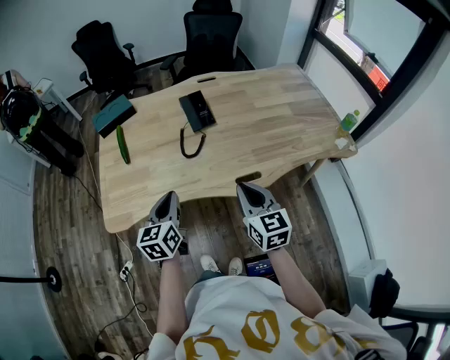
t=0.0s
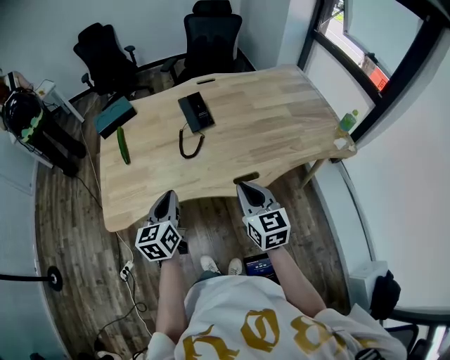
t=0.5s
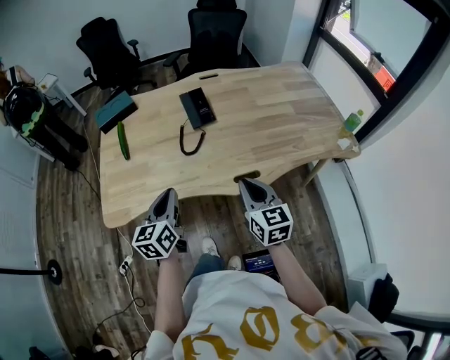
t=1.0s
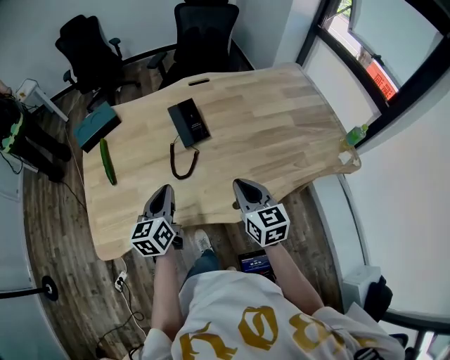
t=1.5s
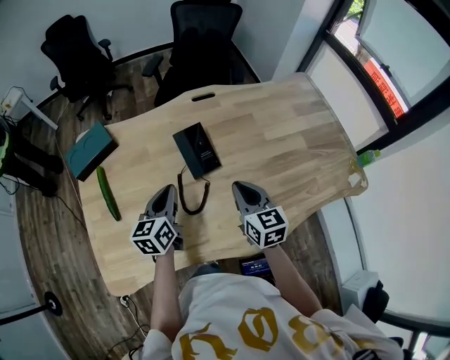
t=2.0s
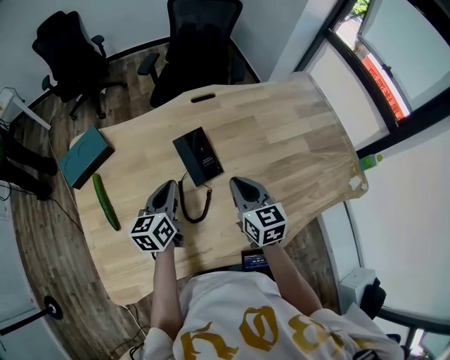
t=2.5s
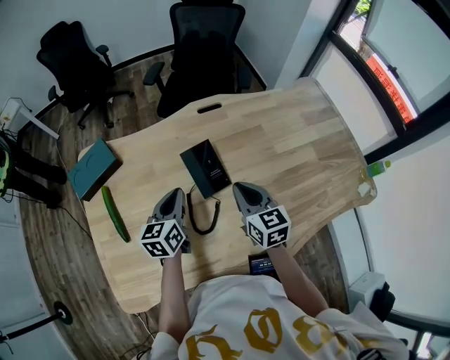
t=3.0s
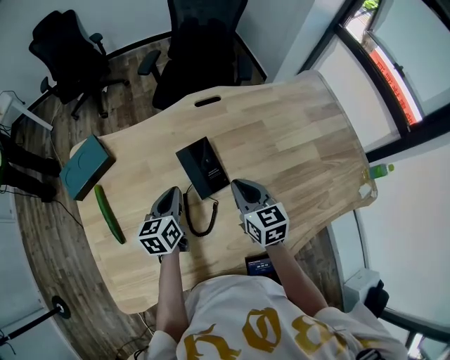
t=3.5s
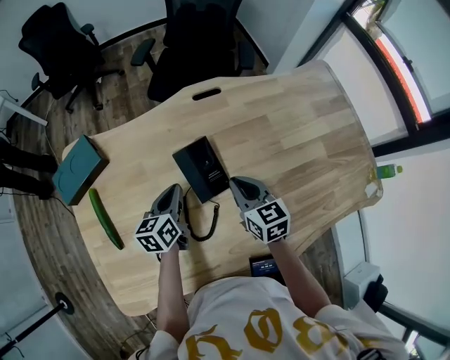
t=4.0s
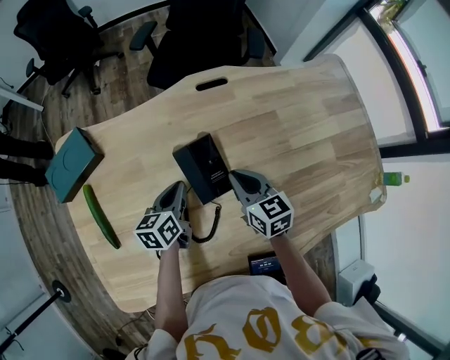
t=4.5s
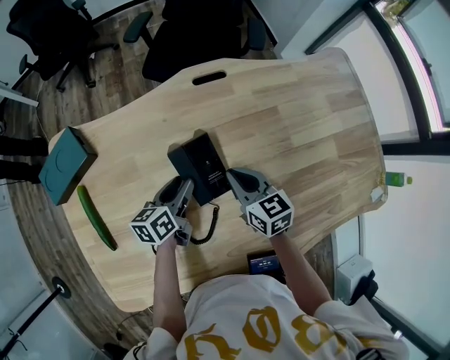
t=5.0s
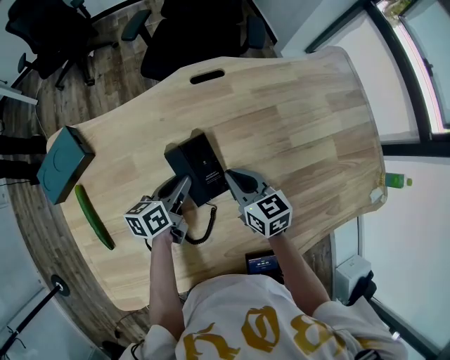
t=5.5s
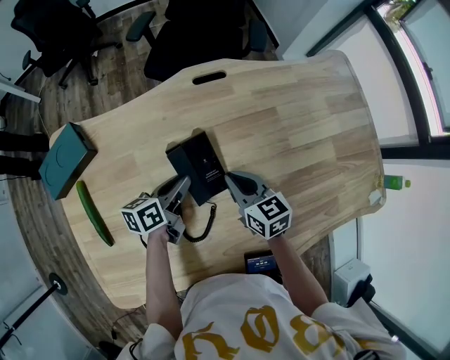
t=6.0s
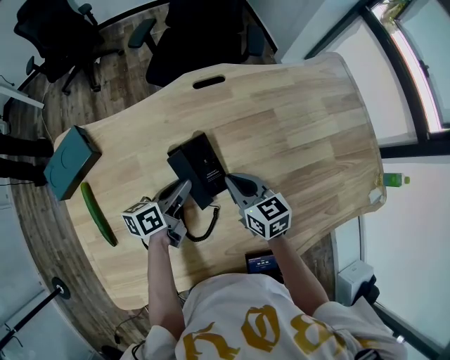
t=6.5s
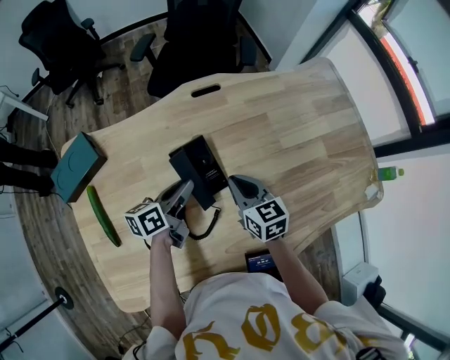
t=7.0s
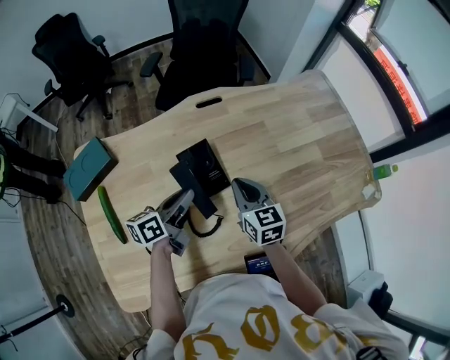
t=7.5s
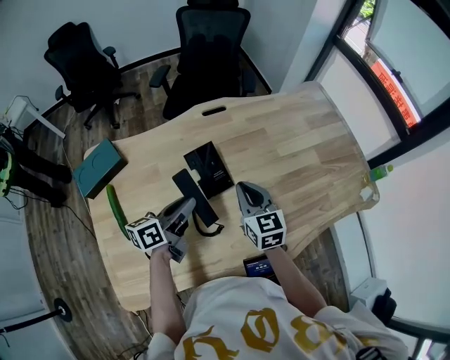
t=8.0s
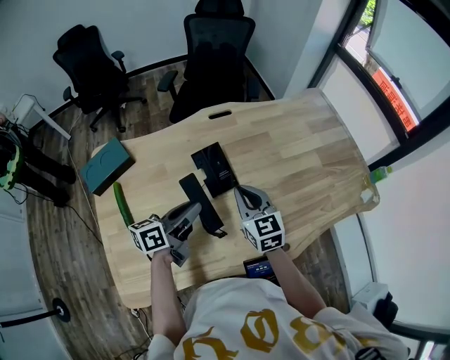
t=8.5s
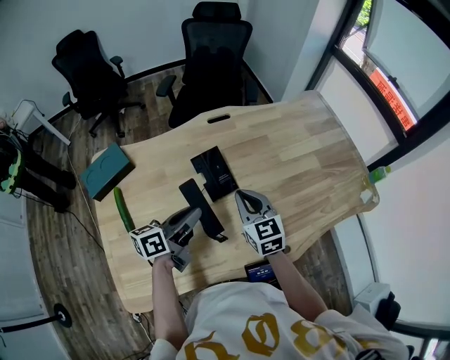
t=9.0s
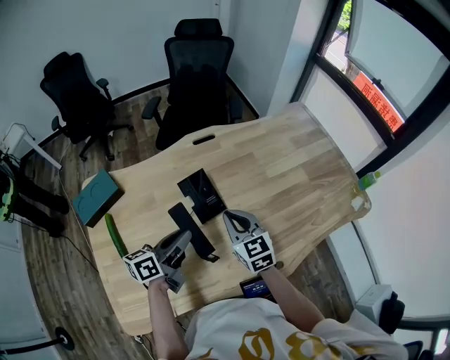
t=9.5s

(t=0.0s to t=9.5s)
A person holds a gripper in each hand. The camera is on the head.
t=0.0s - t=2.0s: The grippers both shift forward by approximately 25 cm.
t=2.0s - t=4.0s: Both grippers move forward and downward, about 15 cm.
t=4.0s - t=5.5s: The right gripper changes place by some 5 cm, while the left gripper goes some 5 cm downward, and opens its fingers.
t=5.5s - t=7.5s: The left gripper travels upward and backward by approximately 10 cm. Meanwhile the right gripper goes about 5 cm upward.
t=7.5s - t=9.5s: The left gripper heads backward and upward, covering some 10 cm, while the right gripper heads backward, covering approximately 5 cm.

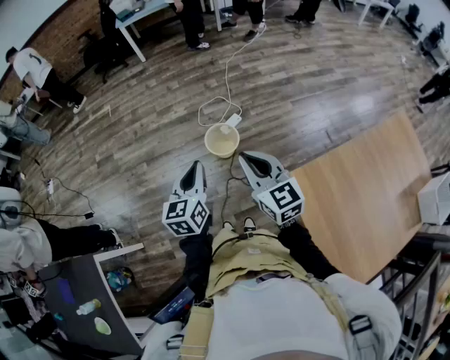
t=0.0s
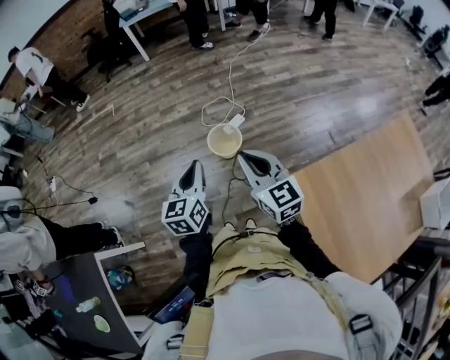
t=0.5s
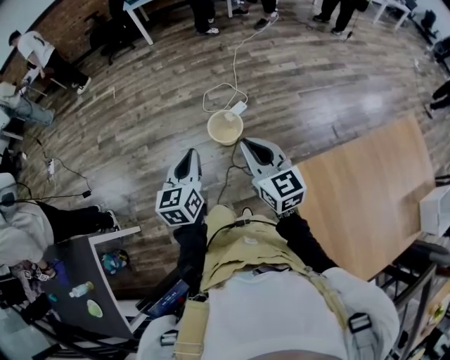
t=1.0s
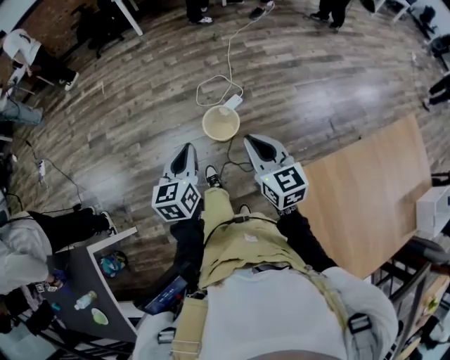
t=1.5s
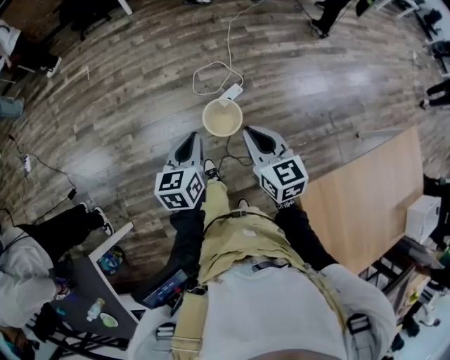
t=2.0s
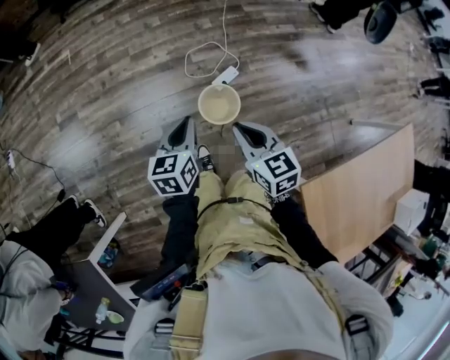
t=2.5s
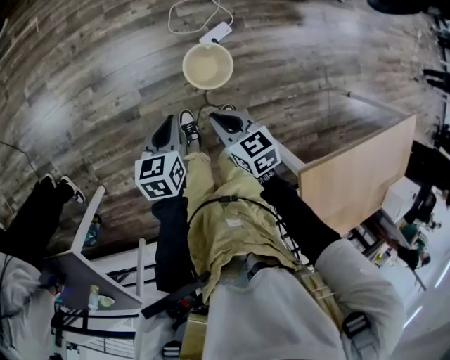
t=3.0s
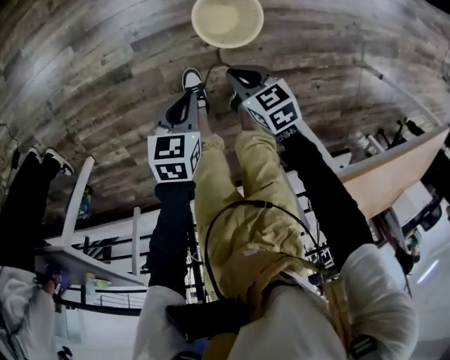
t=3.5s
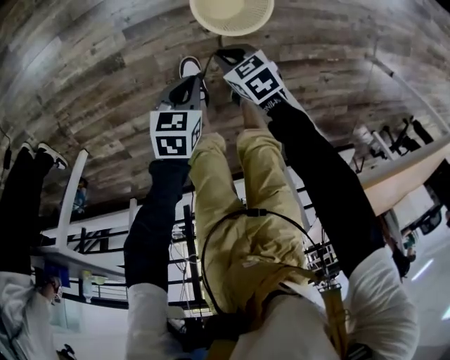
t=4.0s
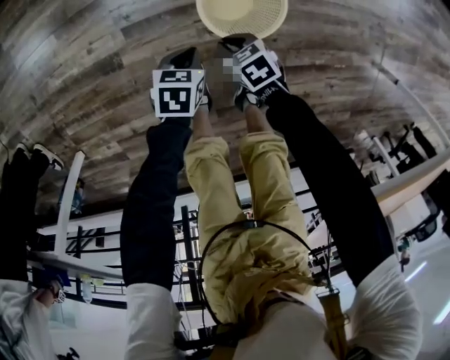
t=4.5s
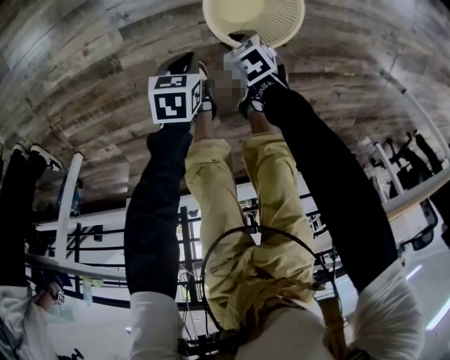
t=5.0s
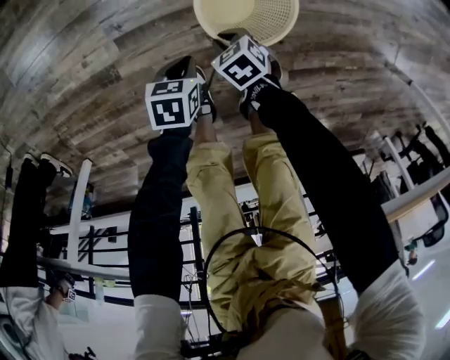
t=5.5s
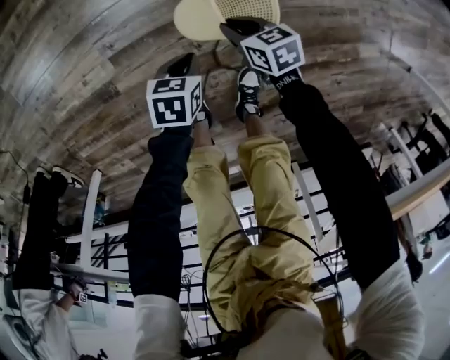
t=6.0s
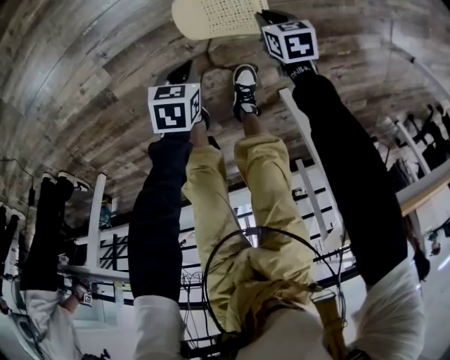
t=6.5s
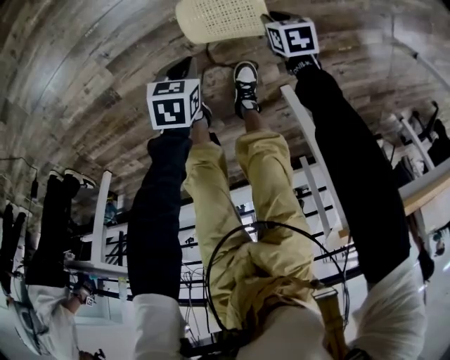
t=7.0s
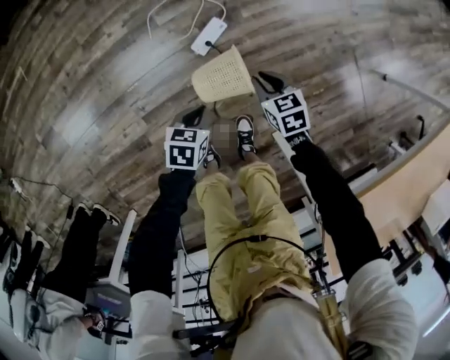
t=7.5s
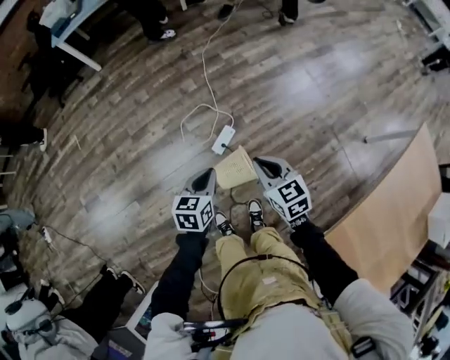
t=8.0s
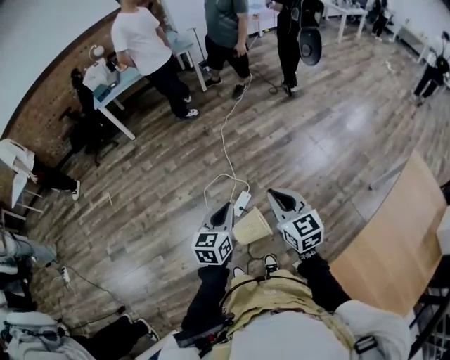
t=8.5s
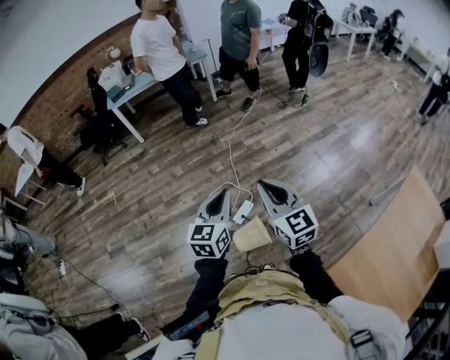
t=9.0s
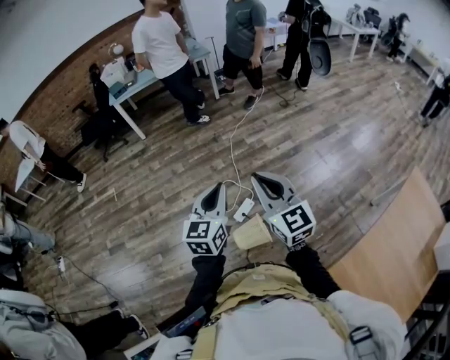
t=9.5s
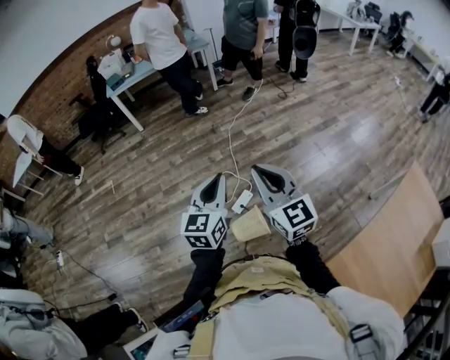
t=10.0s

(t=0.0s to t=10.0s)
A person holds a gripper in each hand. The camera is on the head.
t=0.0s - t=2.0s: Both grippers move forward, approximately 25 cm.
t=2.0s - t=4.0s: The grippers both shift downward by roughly 60 cm. The right gripper tips its fingers downward by approximately 40 degrees; the left gripper rotates some 40 degrees.
t=4.0s - t=6.0s: The left gripper shifts some 15 cm downward. The right gripper ends up roughly 20 cm from where it was, and rotates approximately 20 degrees.
t=6.0s - t=8.0s: Both grippers move upward, about 60 cm. The left gripper rotates approximately 30 degrees; the right gripper turns by some 40 degrees.
t=8.0s - t=10.0s: Both grippers move upward, roughly 35 cm. The left gripper changes its angle by about 30 degrees. The right gripper points its fingers roughly 30 degrees further upward.

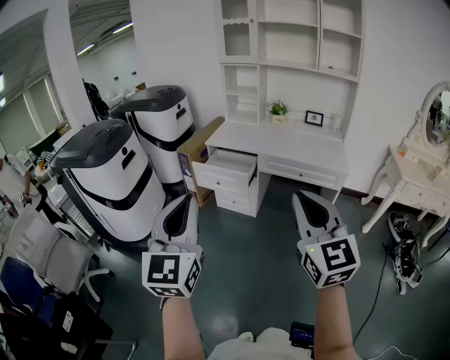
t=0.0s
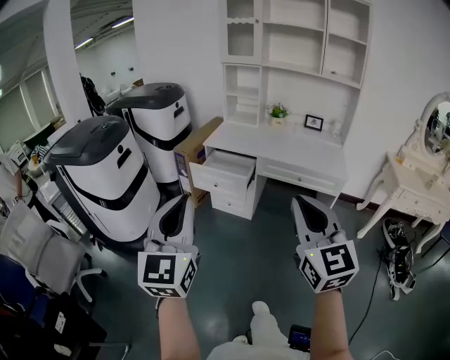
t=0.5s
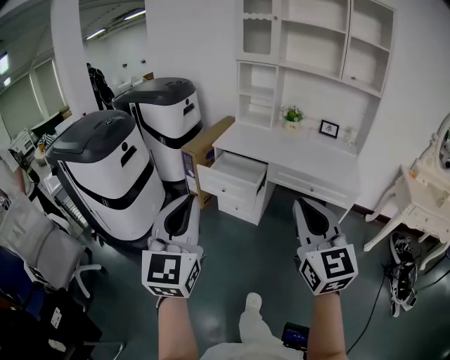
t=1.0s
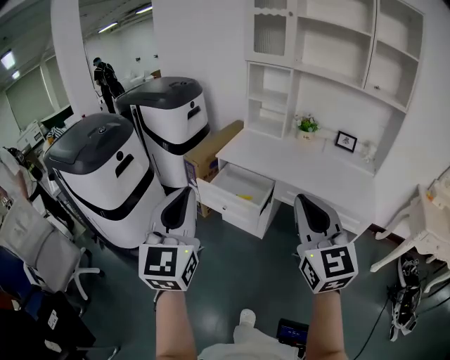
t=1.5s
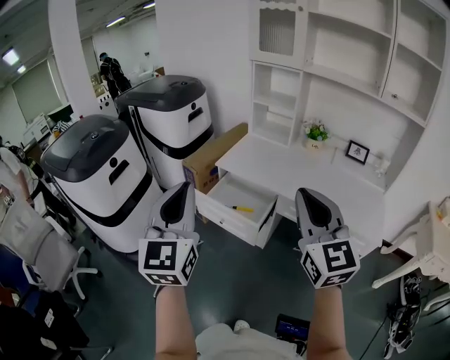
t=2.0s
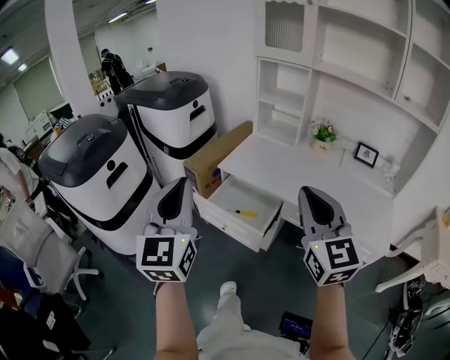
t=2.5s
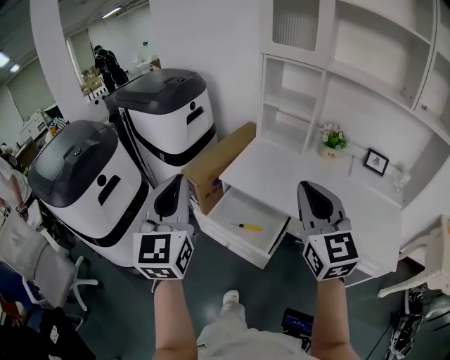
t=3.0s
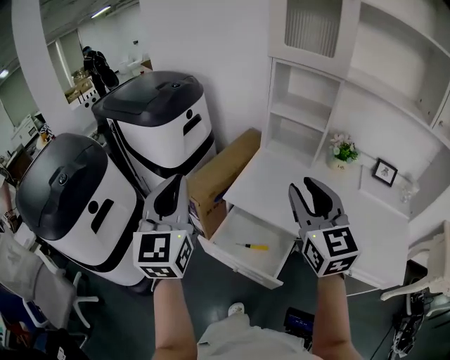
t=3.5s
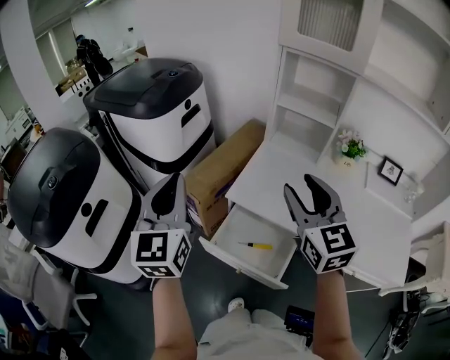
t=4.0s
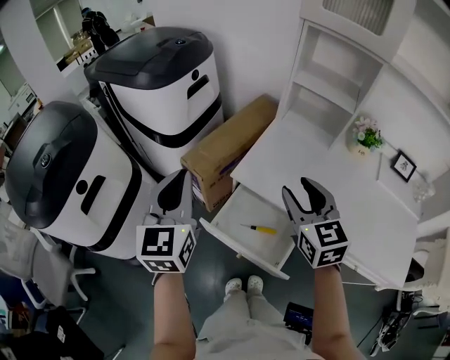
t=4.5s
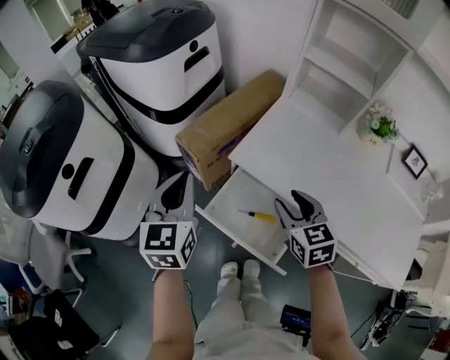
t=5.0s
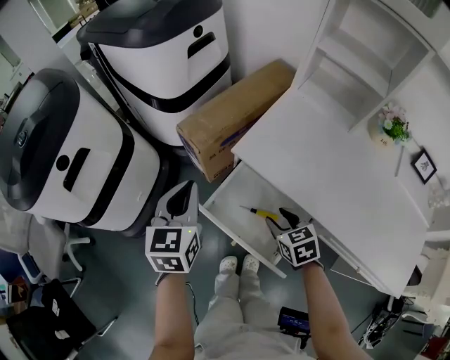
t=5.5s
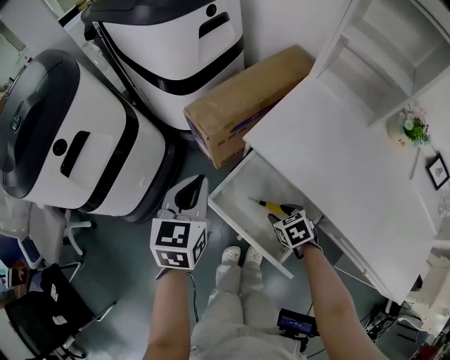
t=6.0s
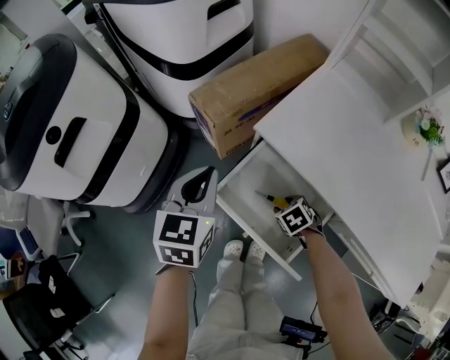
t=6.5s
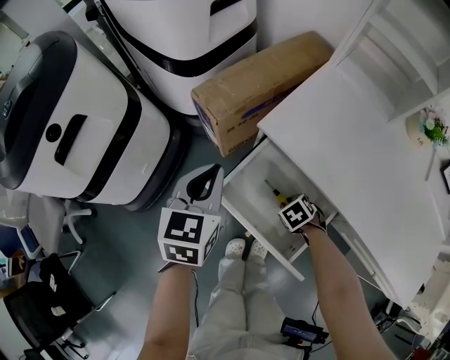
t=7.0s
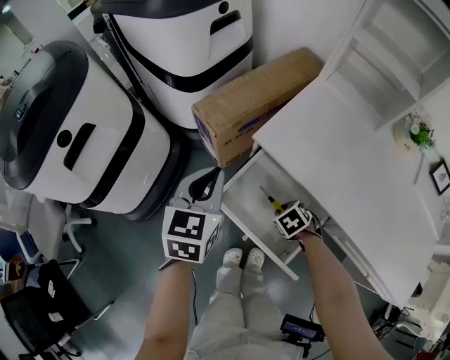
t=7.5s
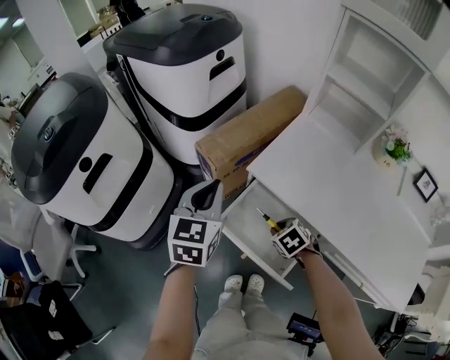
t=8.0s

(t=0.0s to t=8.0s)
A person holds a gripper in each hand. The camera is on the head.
t=0.0s - t=2.0s: The two grippers go about 40 cm forward.
t=2.0s - t=4.0s: Both grippers move forward, roughly 40 cm. The right gripper opens.
t=4.0s - t=6.0s: The right gripper heads downward, covering roughly 50 cm, and points its fingers some 60 degrees further downward. The left gripper moves downward, roughly 25 cm, and tips its fingers downward by about 30 degrees.
t=6.0s - t=8.0s: Both grippers travel together upward, about 5 cm. The right gripper closes up.
